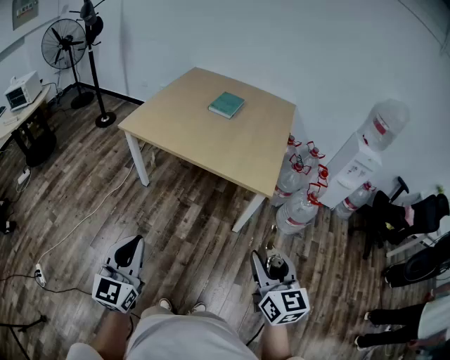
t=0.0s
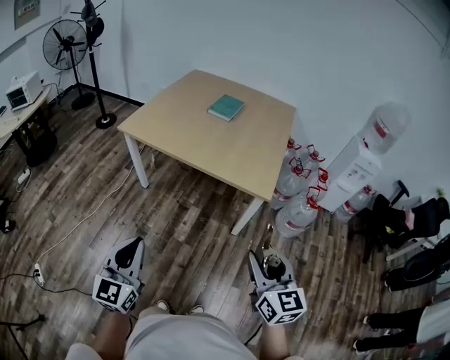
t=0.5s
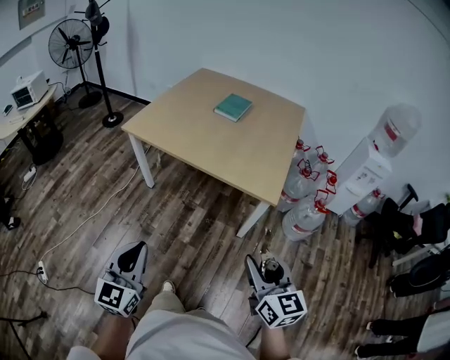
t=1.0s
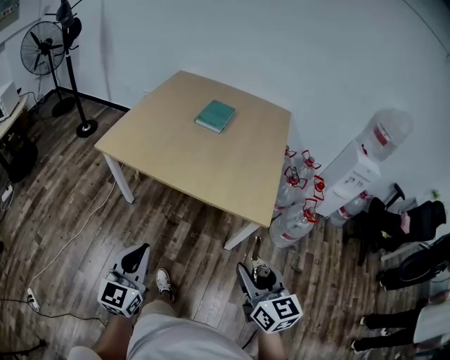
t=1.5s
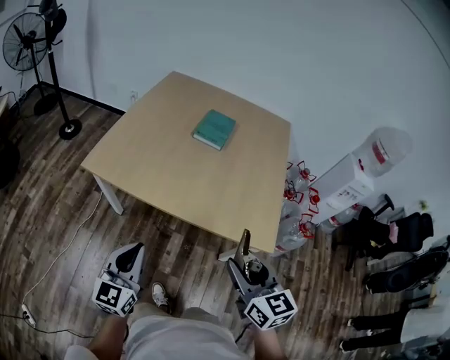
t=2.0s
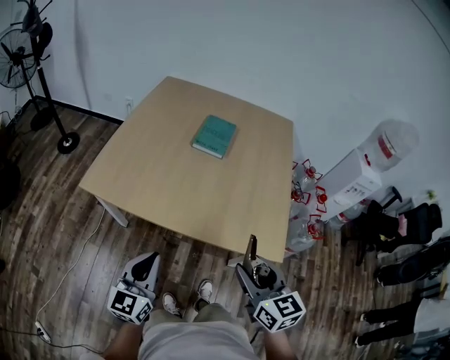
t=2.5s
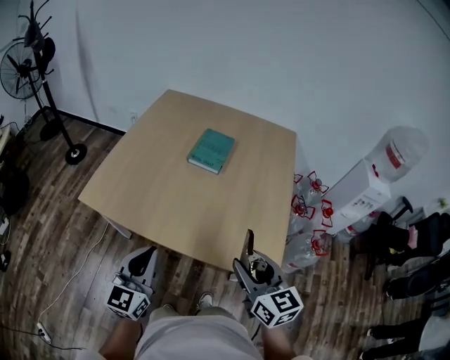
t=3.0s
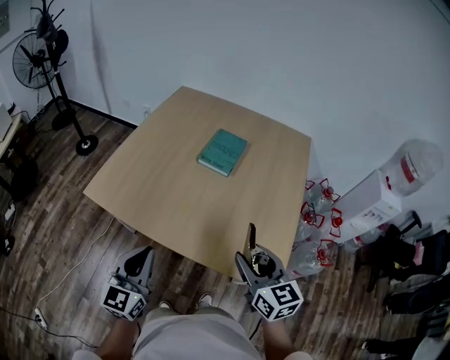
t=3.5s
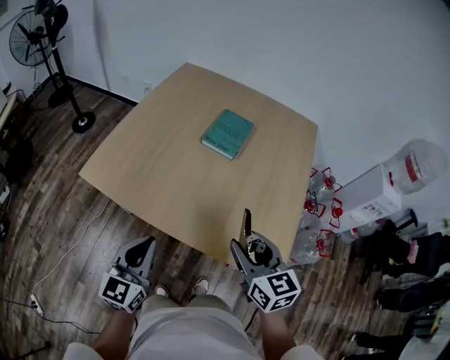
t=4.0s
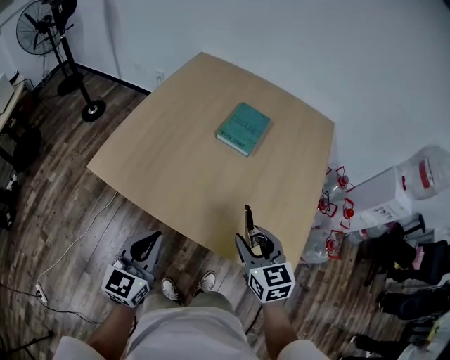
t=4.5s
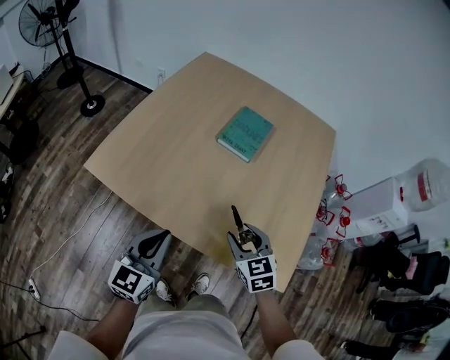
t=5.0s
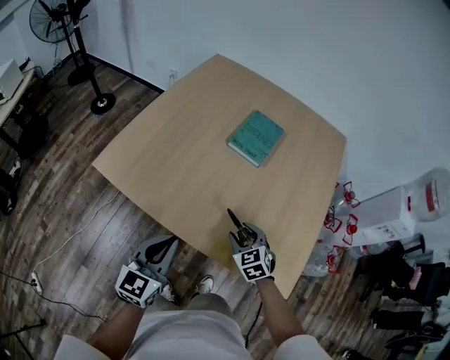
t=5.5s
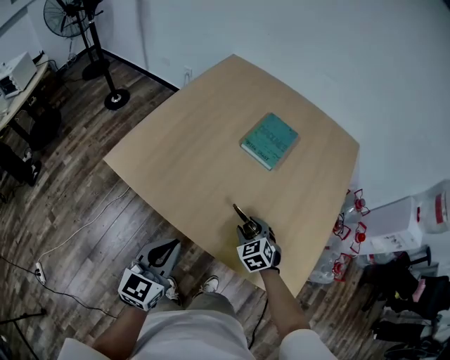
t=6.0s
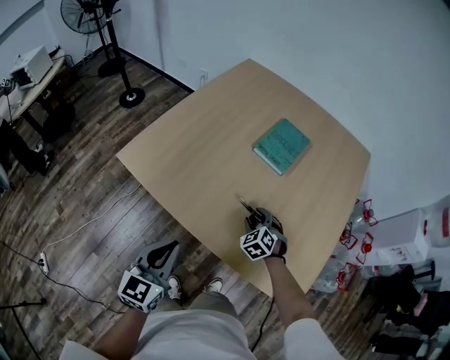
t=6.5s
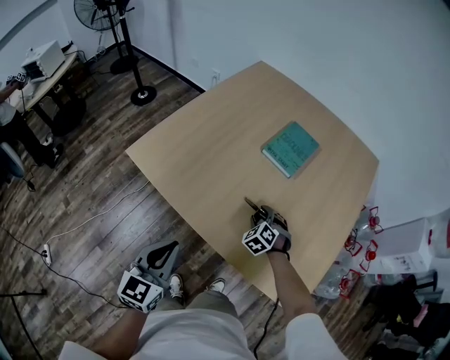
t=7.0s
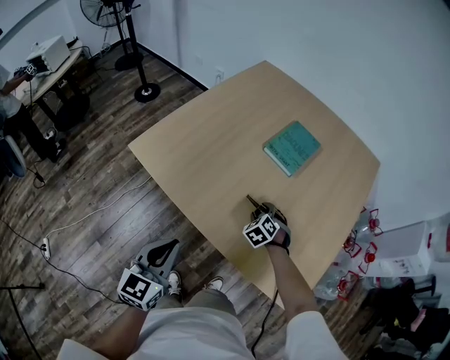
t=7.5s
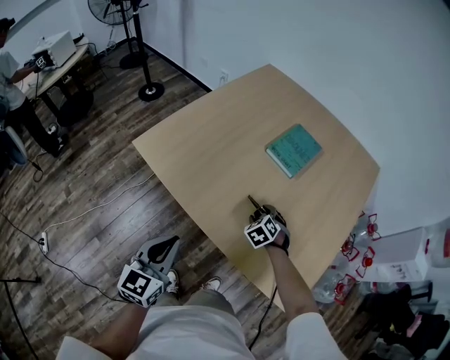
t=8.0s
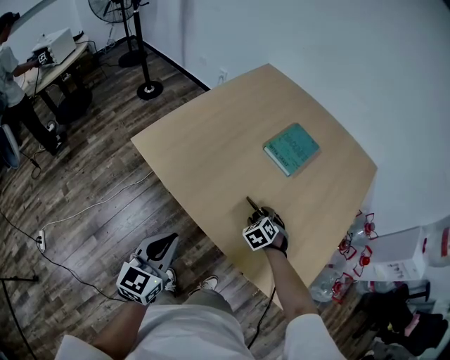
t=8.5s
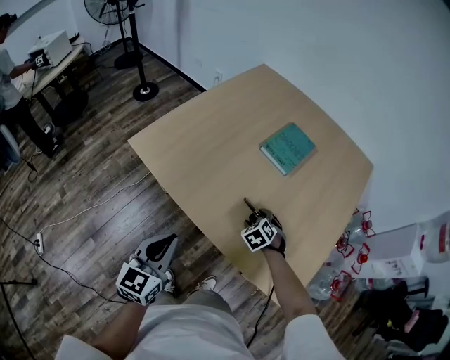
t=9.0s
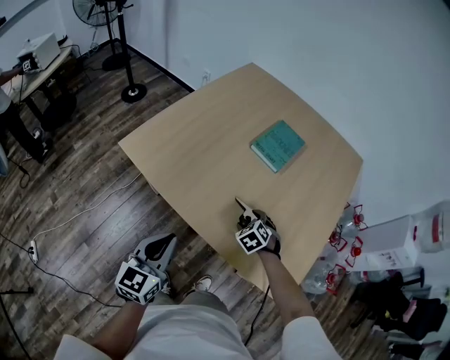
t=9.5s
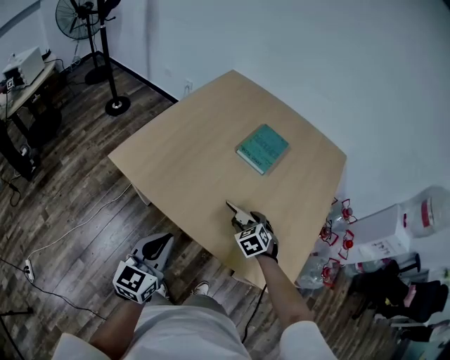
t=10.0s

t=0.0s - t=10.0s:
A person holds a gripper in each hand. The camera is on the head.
t=0.0s - t=2.0s: The grippers both shift forward by roughly 35 cm.
t=2.0s - t=4.0s: The right gripper travels forward by some 20 cm, while the left gripper goes about 15 cm forward and to the right.
t=4.0s - t=6.0s: The right gripper goes roughly 25 cm downward and forward, and swivels about 40 degrees, while the left gripper travels downward by some 5 cm.
t=6.0s - t=8.0s: The left gripper moves backward, some 5 cm. Meanwhile the right gripper shifts by approximately 5 cm.
t=8.0s - t=10.0s: The right gripper is displaced upward and backward by approximately 10 cm.

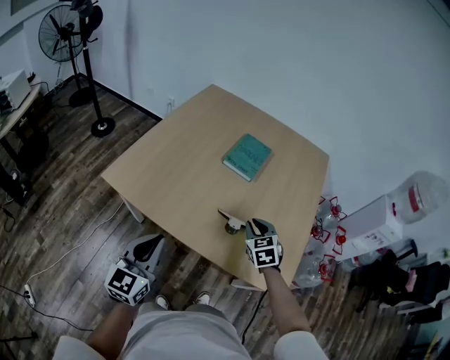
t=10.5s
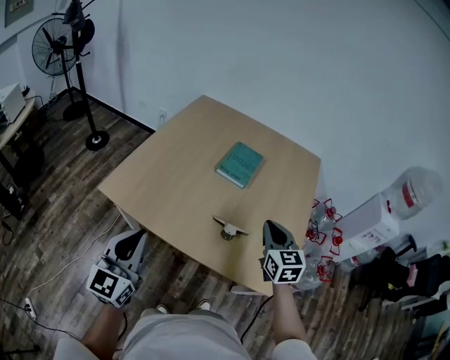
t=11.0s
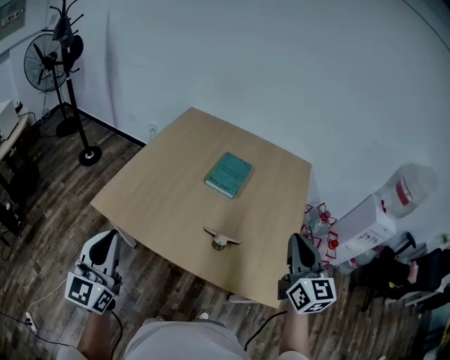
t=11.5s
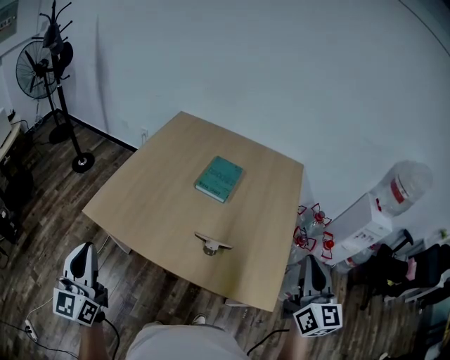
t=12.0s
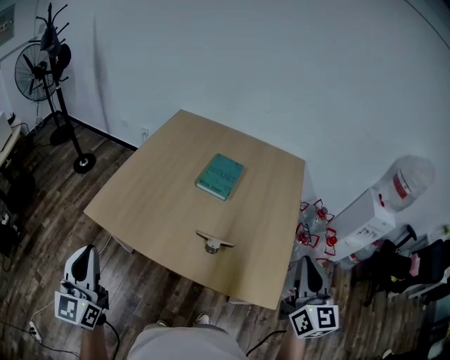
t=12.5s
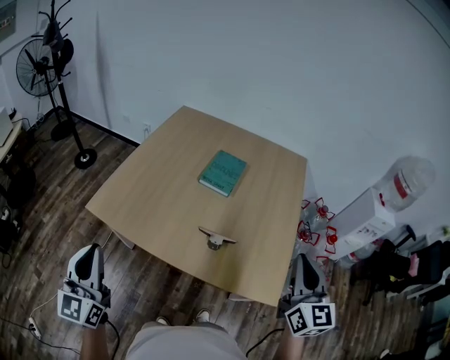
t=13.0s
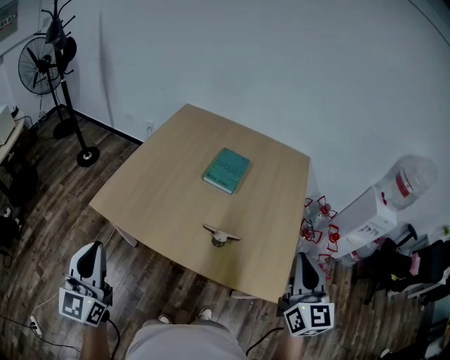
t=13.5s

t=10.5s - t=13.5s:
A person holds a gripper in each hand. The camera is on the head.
t=10.5s - t=12.0s: The left gripper goes some 15 cm upward and to the left, while the right gripper goes about 35 cm upward, to the right and backward, and tilts its fingers approximately 40 degrees upward.
t=12.0s - t=13.5s: The right gripper shifts by some 5 cm.

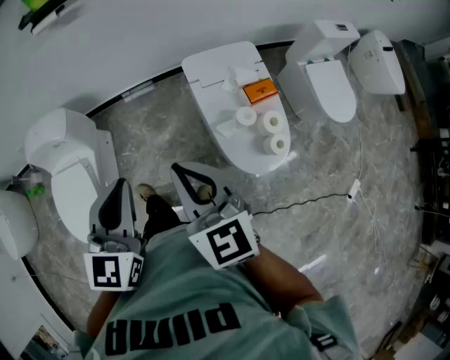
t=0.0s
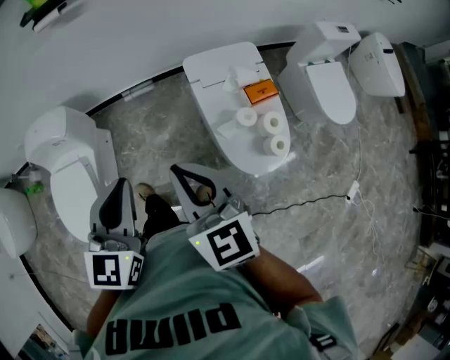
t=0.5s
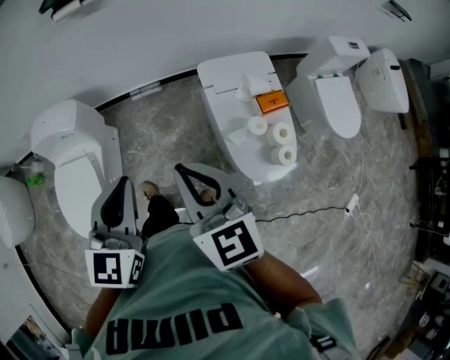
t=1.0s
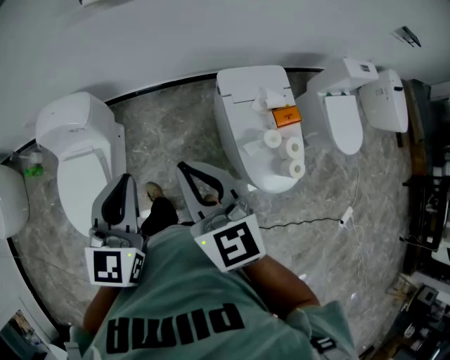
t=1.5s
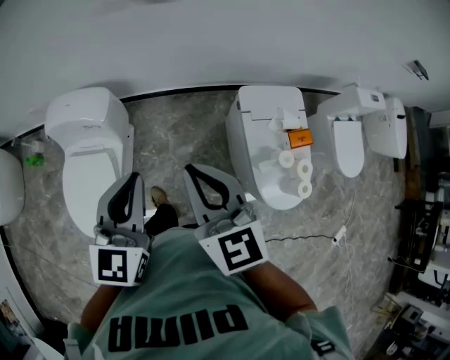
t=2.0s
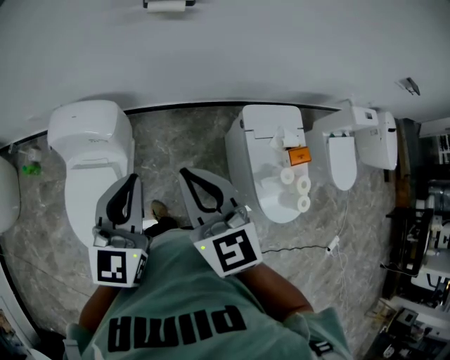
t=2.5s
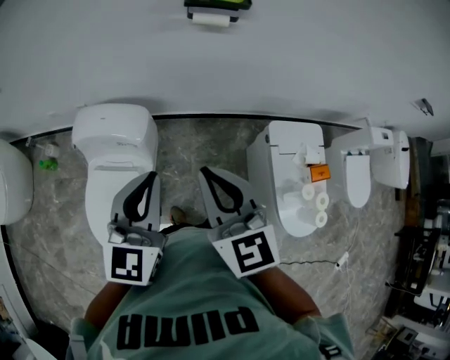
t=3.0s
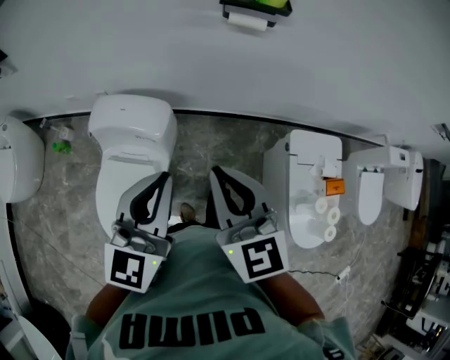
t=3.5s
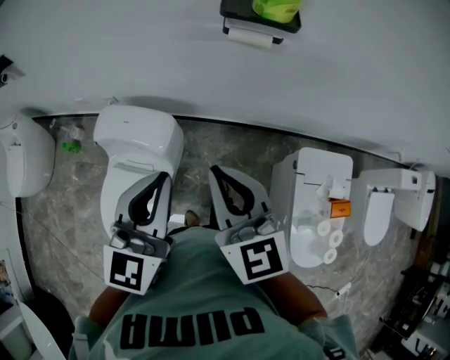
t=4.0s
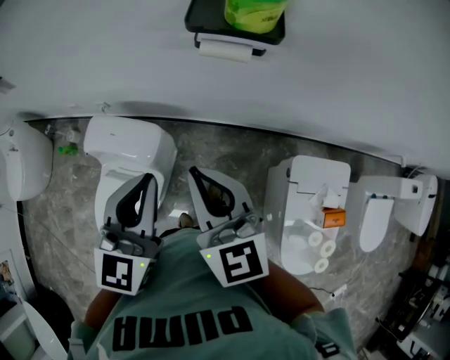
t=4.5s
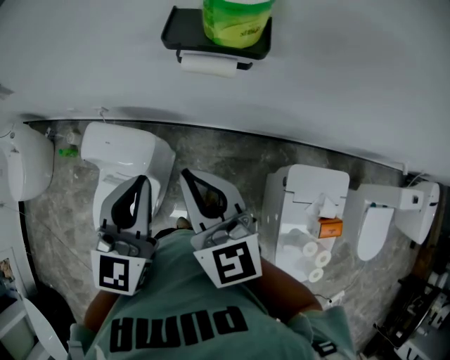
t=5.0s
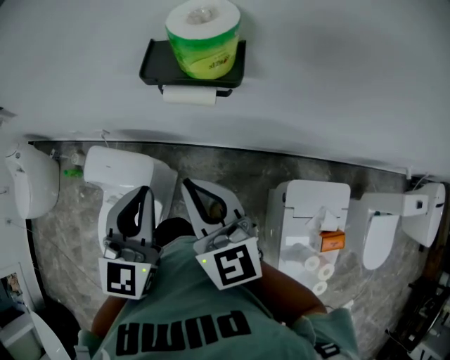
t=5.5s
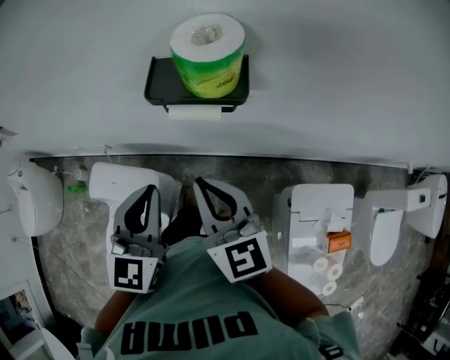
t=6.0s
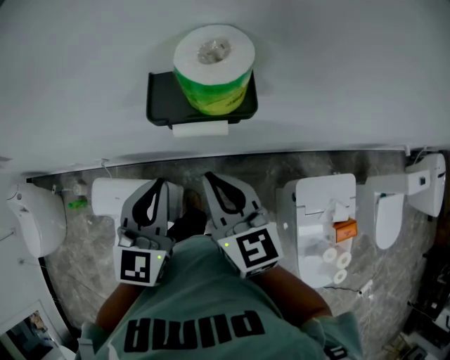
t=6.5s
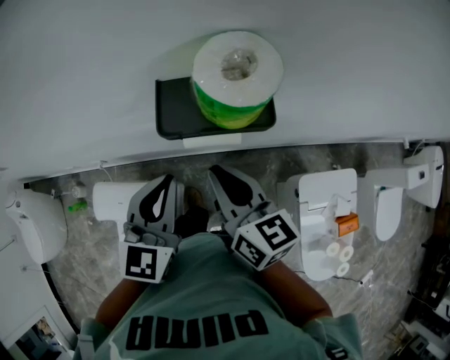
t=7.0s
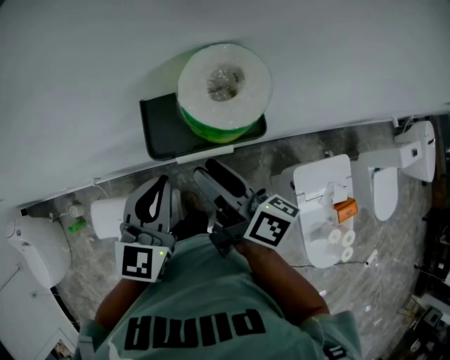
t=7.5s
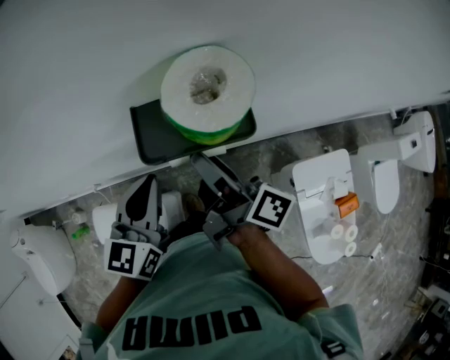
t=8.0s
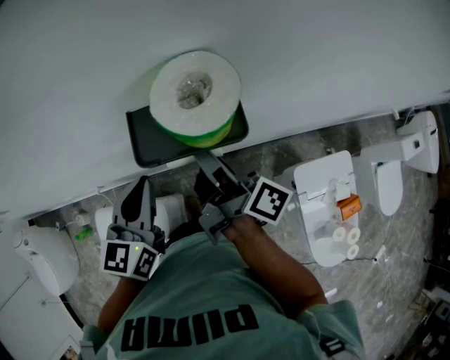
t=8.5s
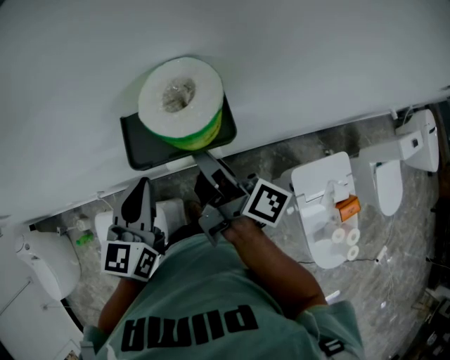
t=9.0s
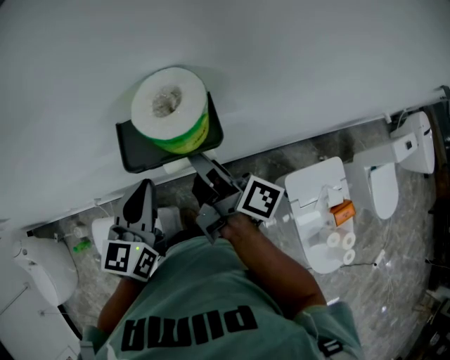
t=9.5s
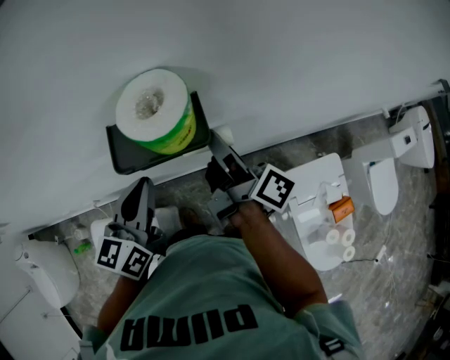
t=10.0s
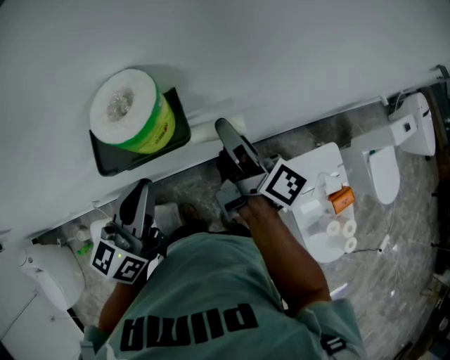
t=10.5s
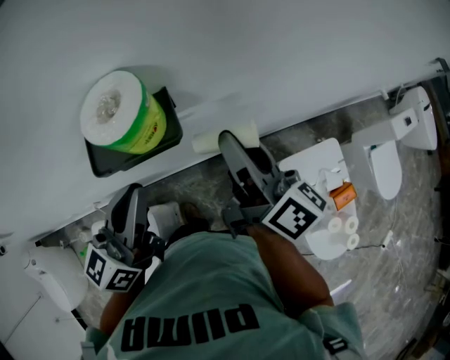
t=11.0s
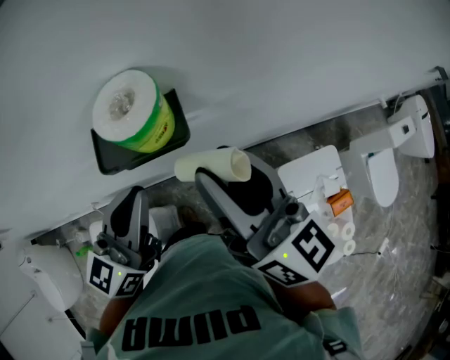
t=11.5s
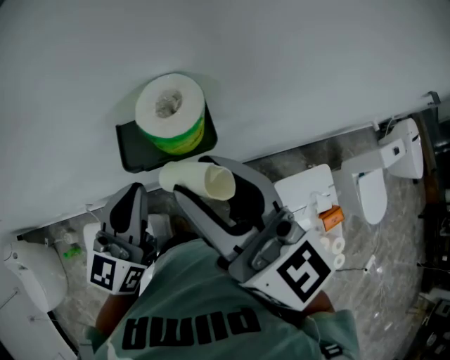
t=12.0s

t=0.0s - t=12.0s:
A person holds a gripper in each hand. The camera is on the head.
t=0.0s - t=2.0s: Both grippers travel together to the left and forward, about 20 cm.
t=2.0s - t=4.0s: The two grippers go approximately 20 cm forward and to the left.
t=4.0s - t=6.0s: Both grippers travel together forward and to the right, roughly 20 cm.
t=6.0s - t=8.0s: Both grippers move forward, approximately 15 cm. The right gripper rotates around the line of its fingers by approximately 70 degrees, clockwise from behind, and opens its fingers. Meanwhile the left gripper changes its angle by about 20 degrees.
t=8.0s - t=10.0s: The right gripper goes roughly 10 cm to the right.
t=10.0s - t=12.0s: The right gripper travels upward and backward by about 20 cm, and rotates around the line of its fingers by about 60 degrees, counterclockwise from behind; the left gripper moves upward, some 5 cm.

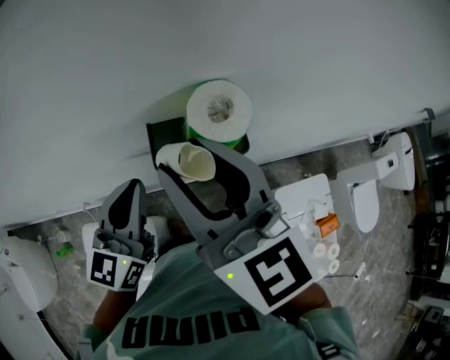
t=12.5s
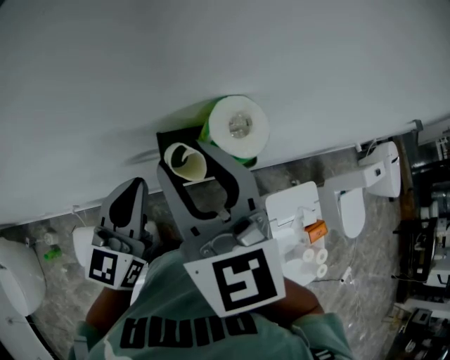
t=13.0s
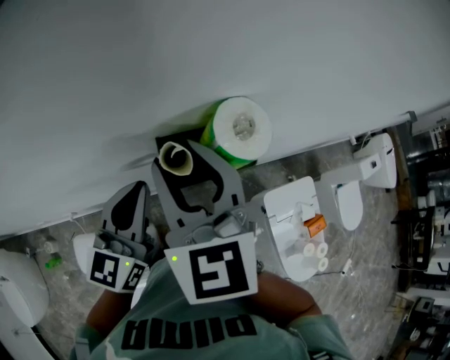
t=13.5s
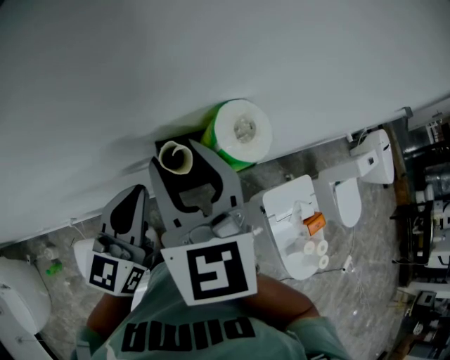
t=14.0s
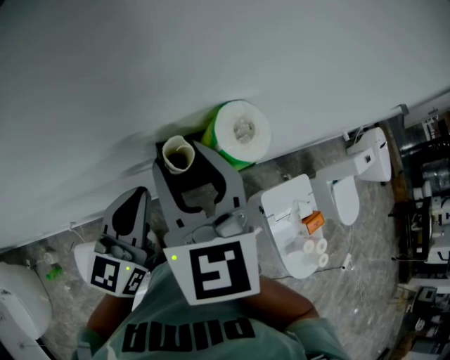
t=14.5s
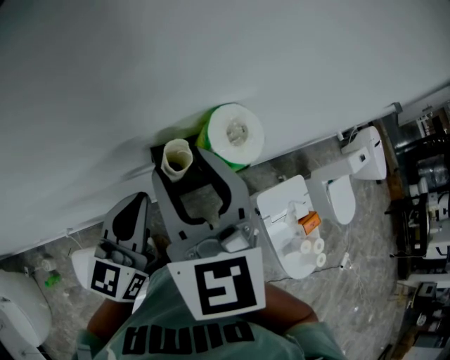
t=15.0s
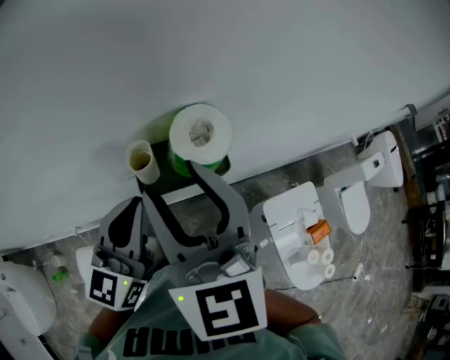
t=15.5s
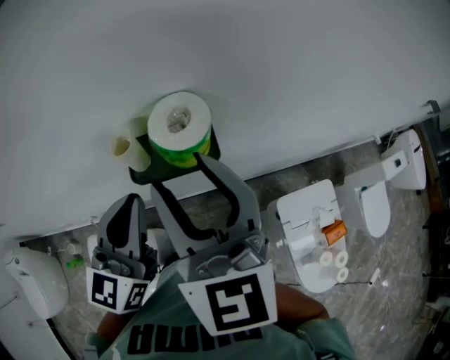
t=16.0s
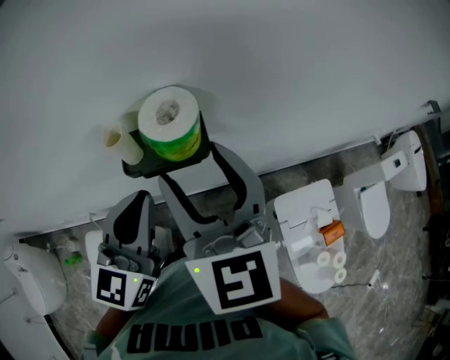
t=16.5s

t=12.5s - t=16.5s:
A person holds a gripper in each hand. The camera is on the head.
t=12.5s - t=14.5s: The right gripper shifts by roughly 10 cm, and swivels approximately 30 degrees.
t=14.5s - t=16.5s: The grippers both shift to the right by about 10 cm.
